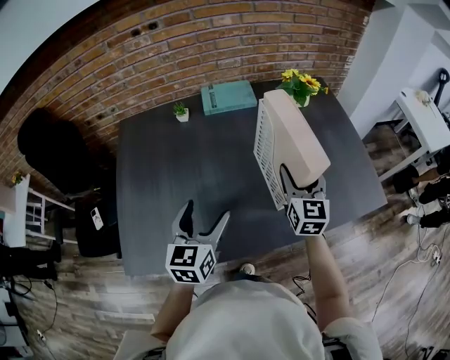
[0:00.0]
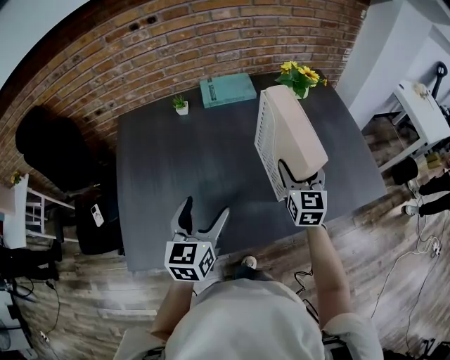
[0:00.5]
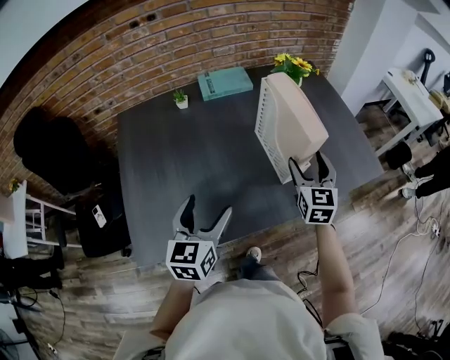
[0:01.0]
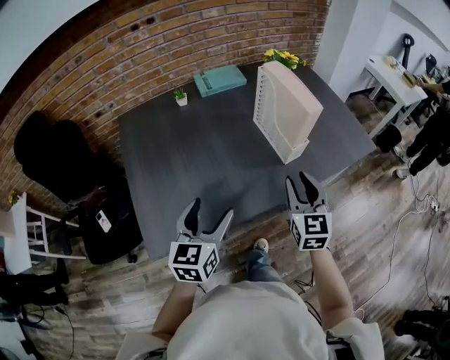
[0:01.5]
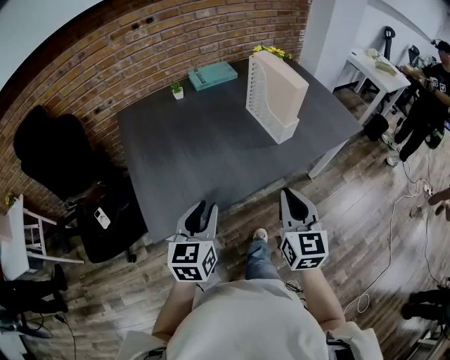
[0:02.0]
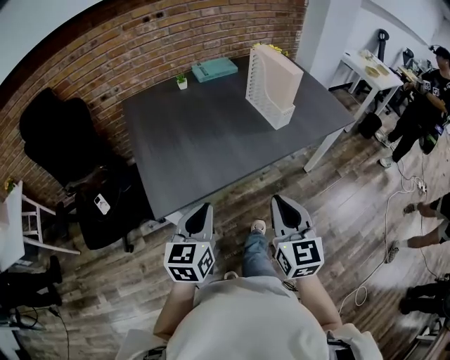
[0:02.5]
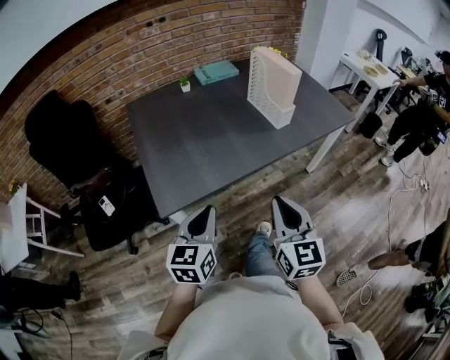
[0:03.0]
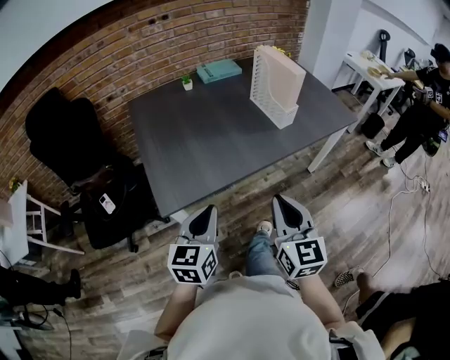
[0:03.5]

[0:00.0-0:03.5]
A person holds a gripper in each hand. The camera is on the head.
0:00.0 to 0:02.0: The left gripper moves backward, about 25 cm, and closes; the right gripper is displaced backward by about 40 cm, and closes.
0:02.0 to 0:03.5: The right gripper heads backward and to the left, covering roughly 15 cm. Meanwhile the left gripper moves backward, some 10 cm.

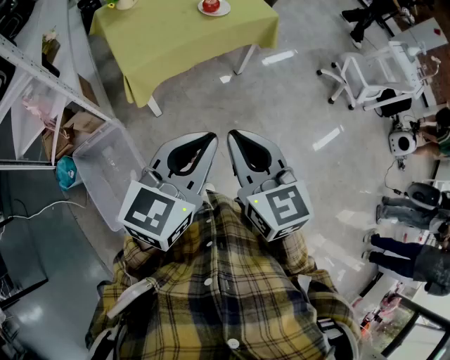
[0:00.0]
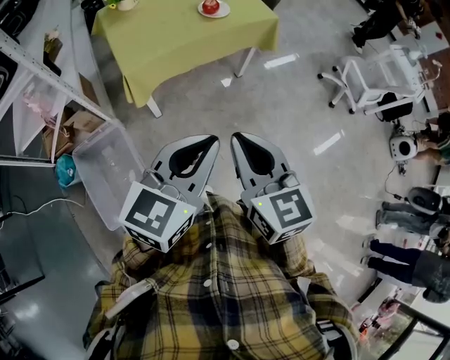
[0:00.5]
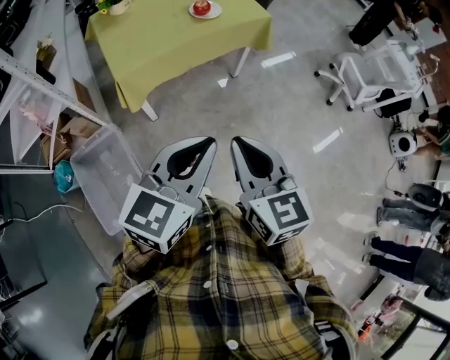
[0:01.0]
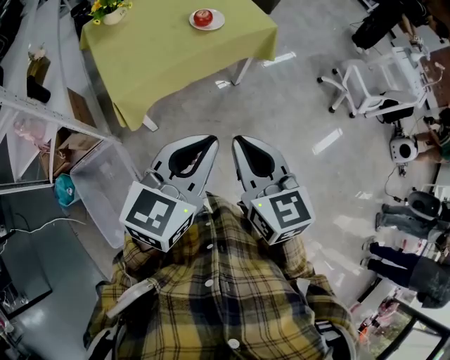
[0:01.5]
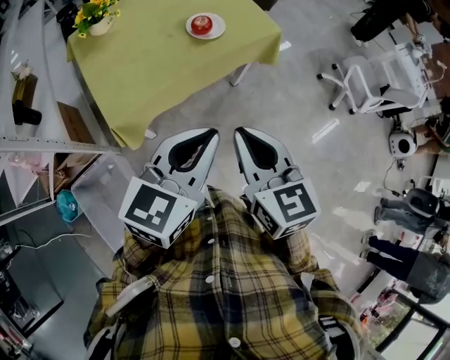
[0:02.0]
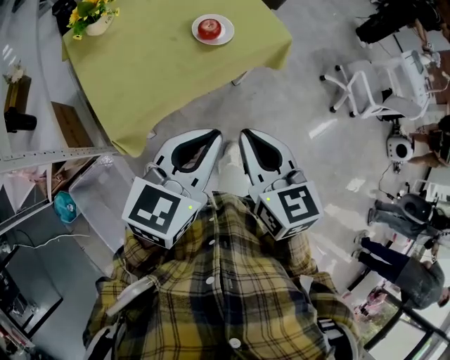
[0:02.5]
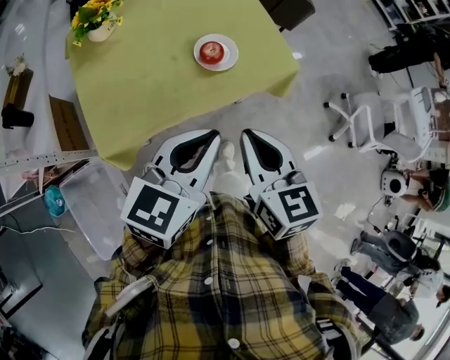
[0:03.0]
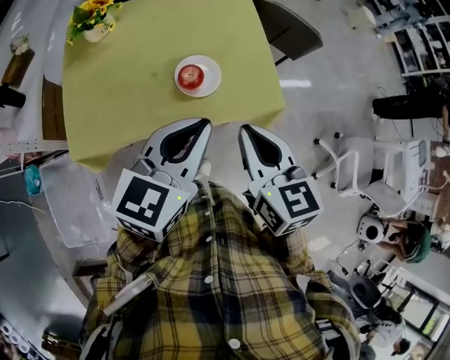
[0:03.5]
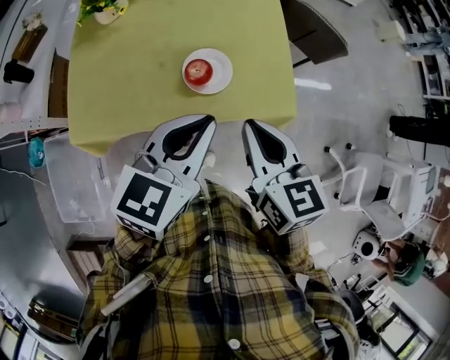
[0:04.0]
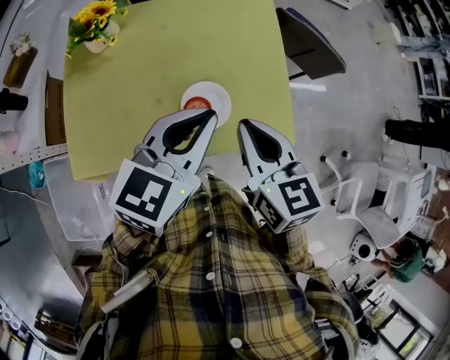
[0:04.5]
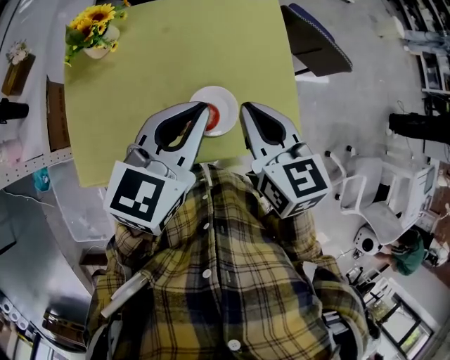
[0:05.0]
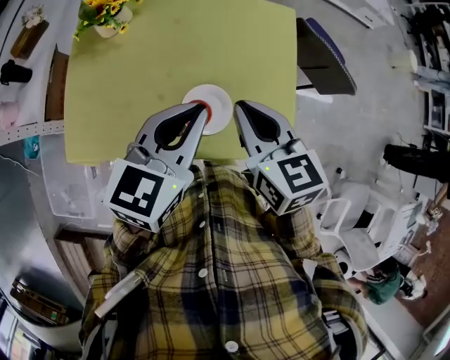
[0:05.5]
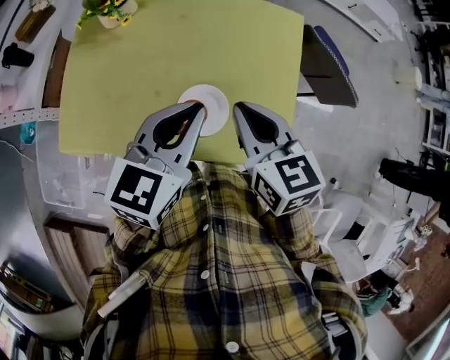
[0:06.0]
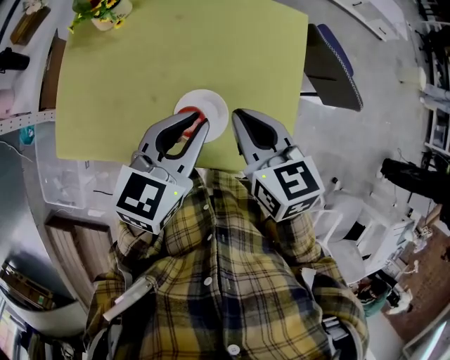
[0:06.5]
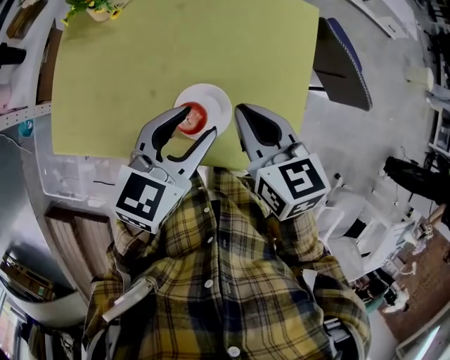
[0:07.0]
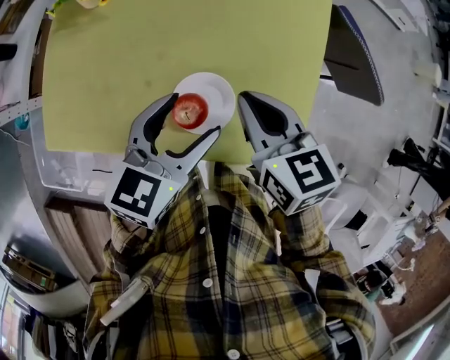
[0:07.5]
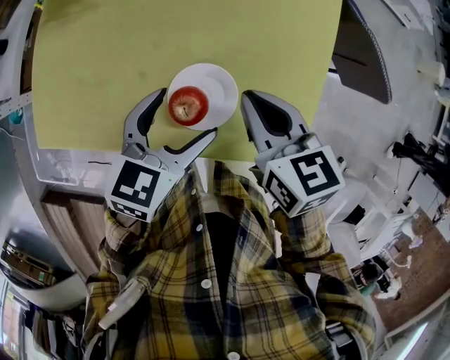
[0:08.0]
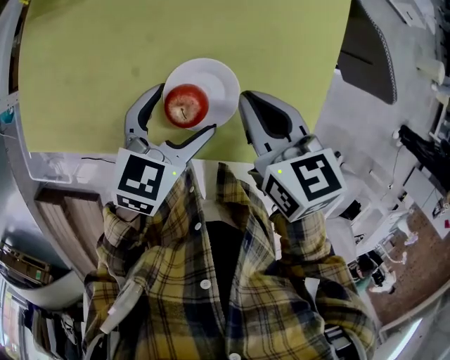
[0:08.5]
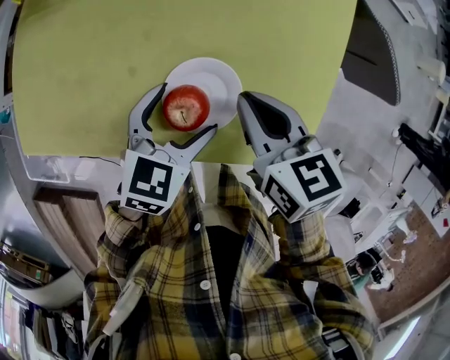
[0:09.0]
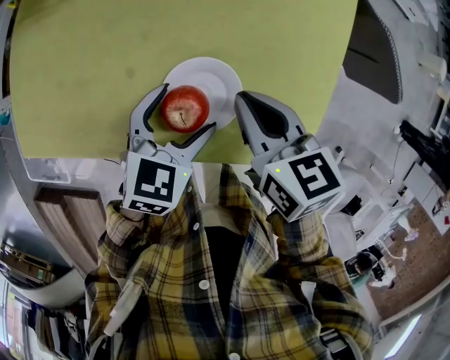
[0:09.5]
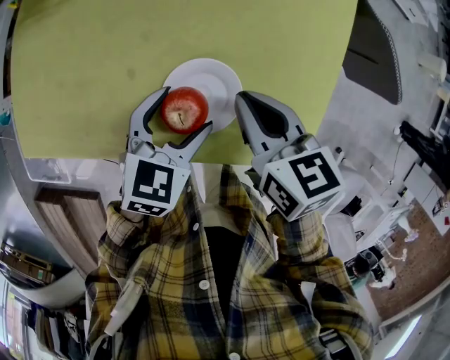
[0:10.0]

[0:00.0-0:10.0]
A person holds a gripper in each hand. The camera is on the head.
0:00.0 to 0:02.0: The two grippers go roughly 25 cm forward.
0:02.0 to 0:04.0: The right gripper ends up about 40 cm from where it was, and turns by roughly 30 degrees, while the left gripper moves about 35 cm, and rotates about 30 degrees.
0:04.0 to 0:06.0: Both grippers move forward, about 20 cm.
0:06.0 to 0:08.0: The grippers both shift downward by about 15 cm. The left gripper opens up.
0:08.0 to 0:10.0: The left gripper travels downward by roughly 5 cm.

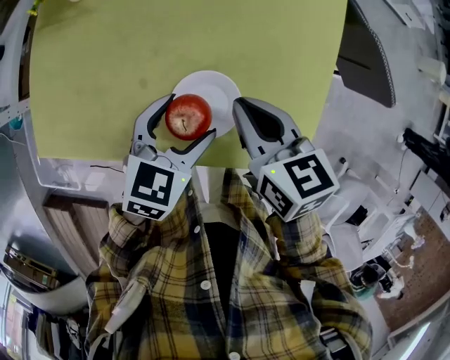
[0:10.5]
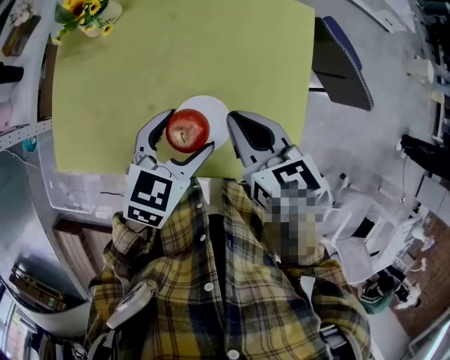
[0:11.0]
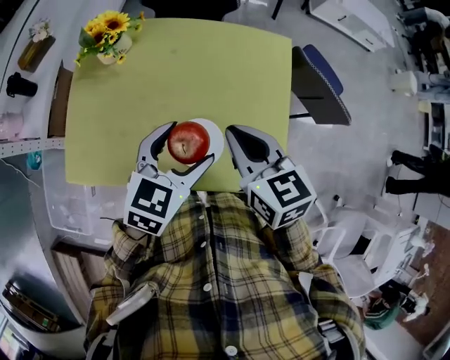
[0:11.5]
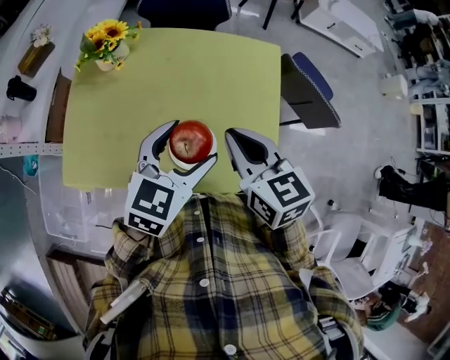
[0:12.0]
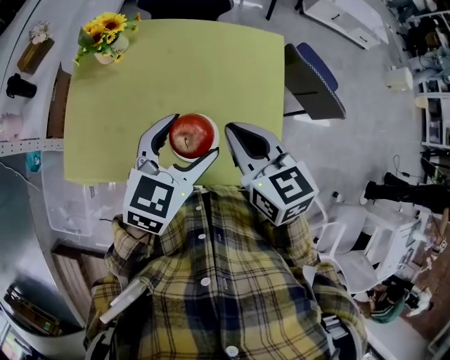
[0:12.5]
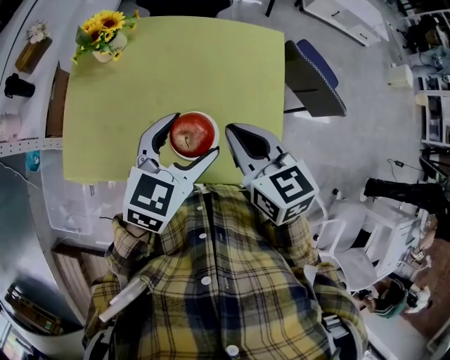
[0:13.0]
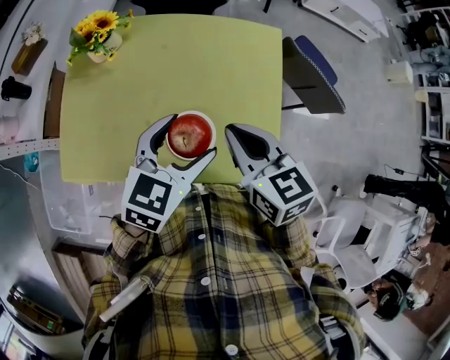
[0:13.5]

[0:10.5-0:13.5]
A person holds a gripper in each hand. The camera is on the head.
0:10.5 to 0:12.0: Both grippers travel together upward, some 15 cm.
0:12.0 to 0:13.5: The grippers make only small movements.

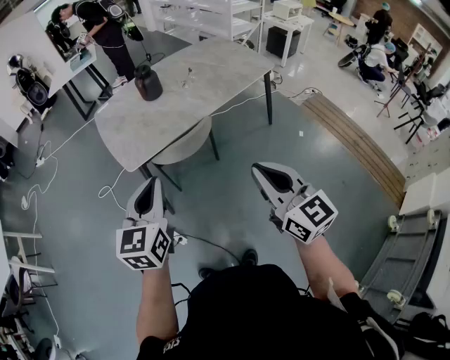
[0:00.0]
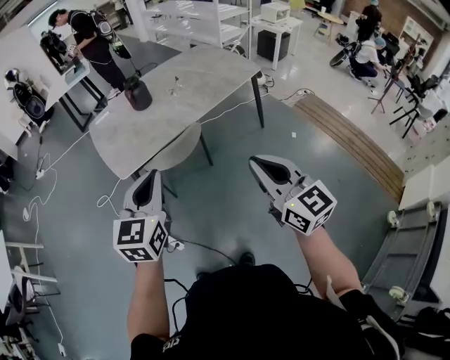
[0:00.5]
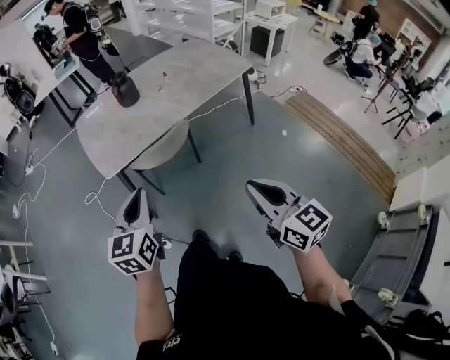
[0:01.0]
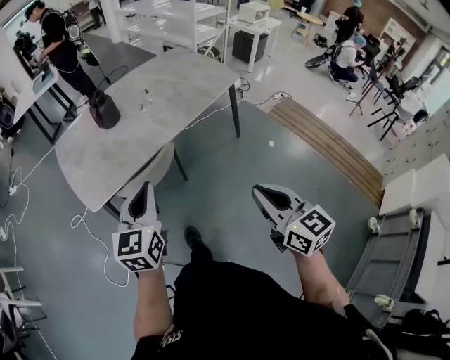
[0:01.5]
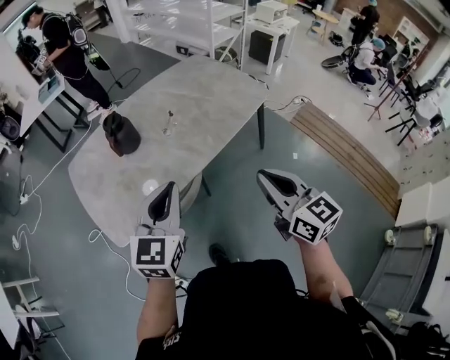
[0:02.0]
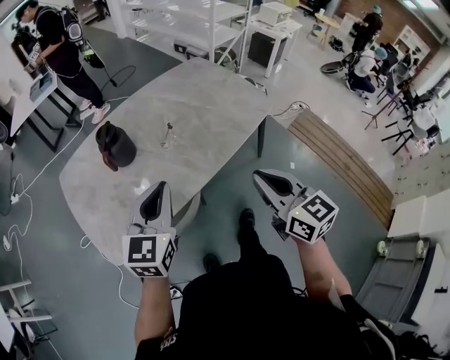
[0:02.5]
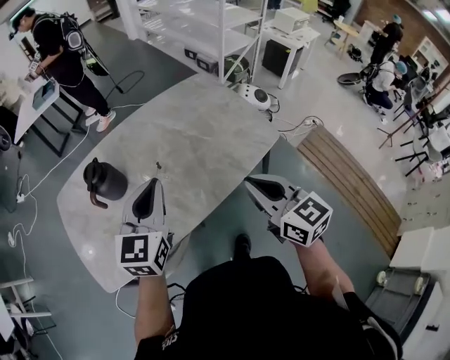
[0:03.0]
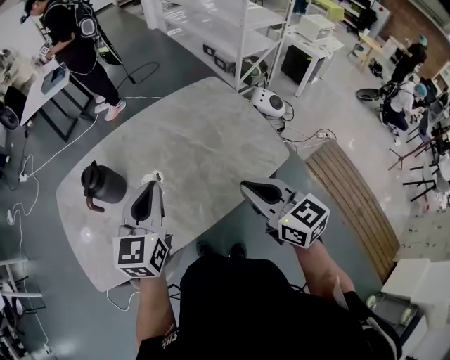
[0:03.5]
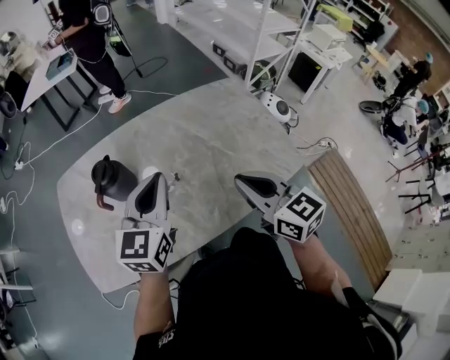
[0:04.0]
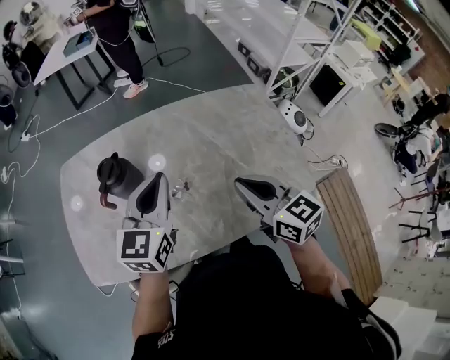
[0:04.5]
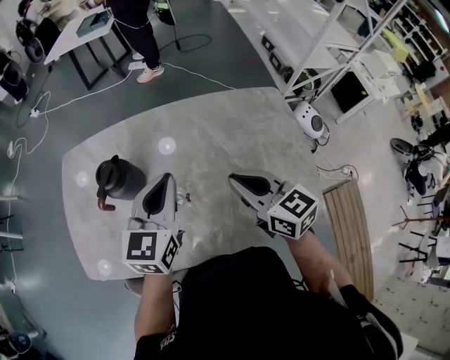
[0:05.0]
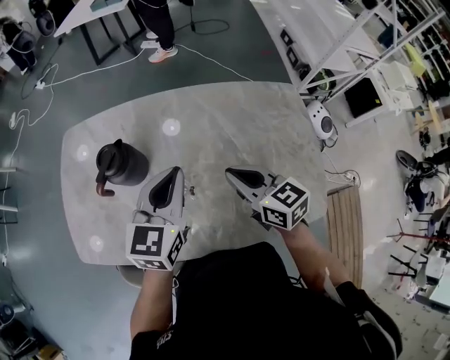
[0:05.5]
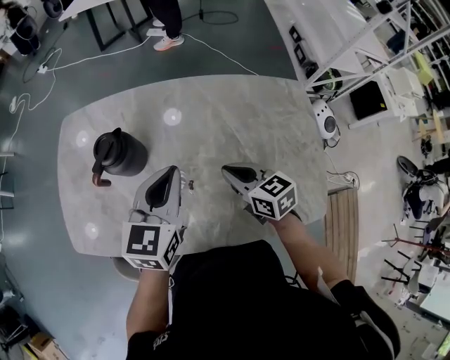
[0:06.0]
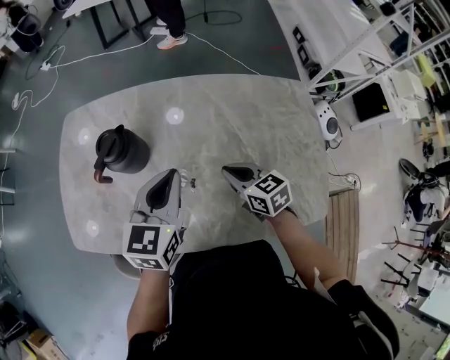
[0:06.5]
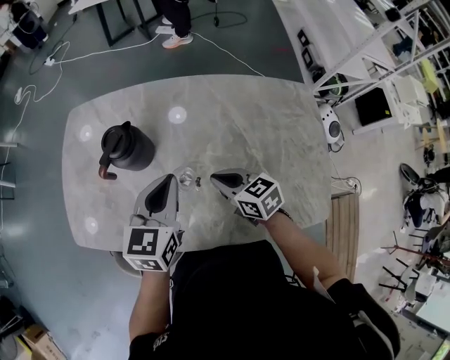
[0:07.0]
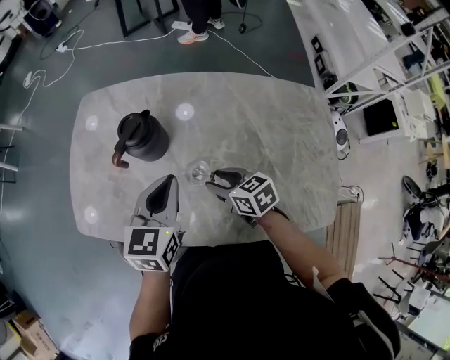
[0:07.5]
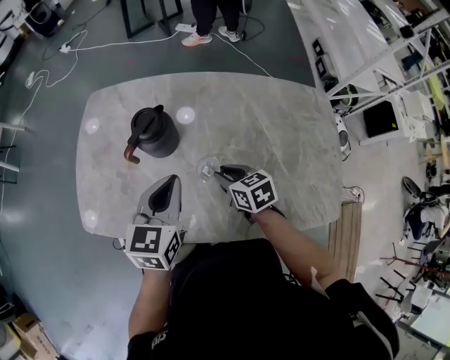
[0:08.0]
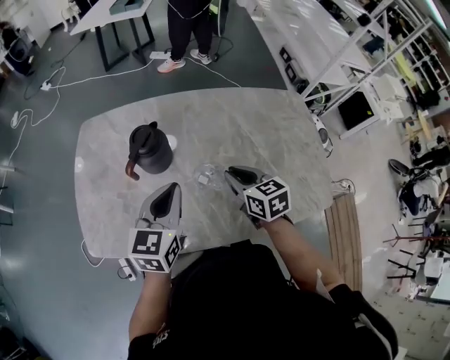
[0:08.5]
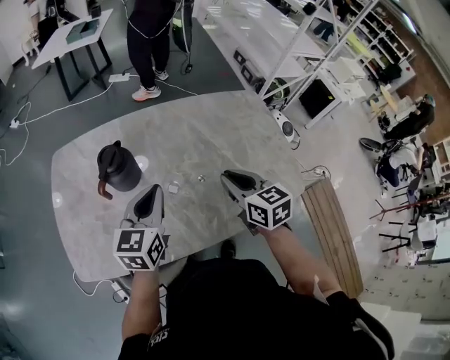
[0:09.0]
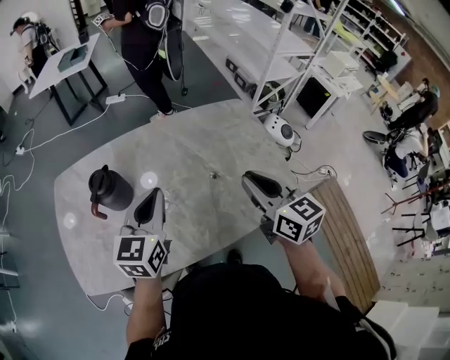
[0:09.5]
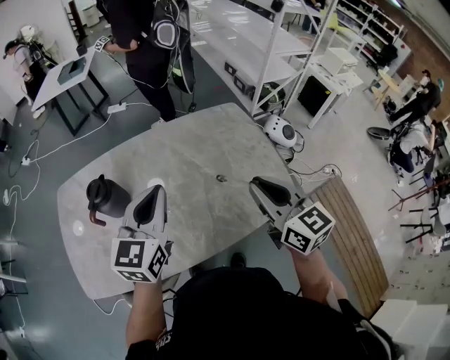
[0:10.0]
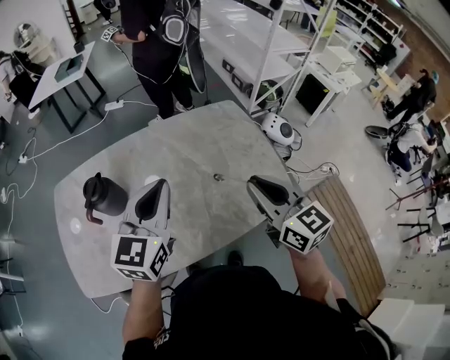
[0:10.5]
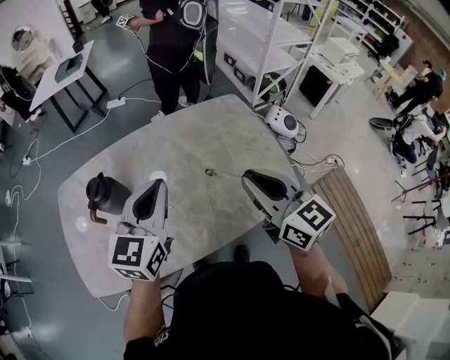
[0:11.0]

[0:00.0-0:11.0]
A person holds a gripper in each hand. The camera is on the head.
0:00.0 to 0:02.0: The left gripper travels forward and to the right by approximately 30 cm; the right gripper is displaced forward by about 30 cm.
0:02.0 to 0:03.5: Both grippers move forward, some 30 cm. The right gripper turns by roughly 20 degrees.
0:03.5 to 0:05.5: The right gripper travels forward by approximately 25 cm, and rotates about 30 degrees. The left gripper travels forward by roughly 15 cm.
0:05.5 to 0:07.5: The left gripper travels to the left by roughly 10 cm. Meanwhile the right gripper moves downward and to the left, approximately 15 cm, rotates some 20 degrees, and opens.
0:07.5 to 0:09.0: The right gripper is displaced upward by some 15 cm, changes its angle by about 40 degrees, and closes its fingers.
0:09.0 to 0:11.0: The right gripper travels upward and to the right by approximately 20 cm, and changes its angle by some 20 degrees; the left gripper goes some 15 cm to the right and upward.
